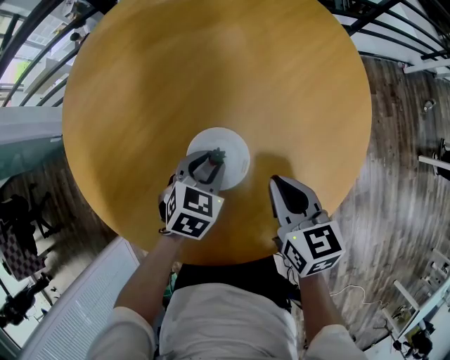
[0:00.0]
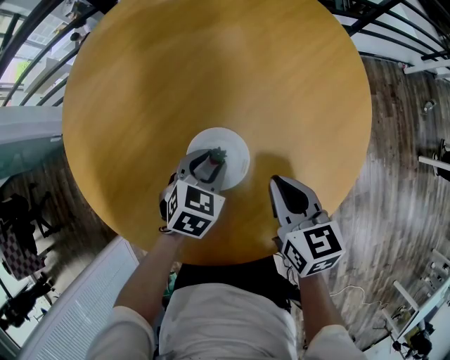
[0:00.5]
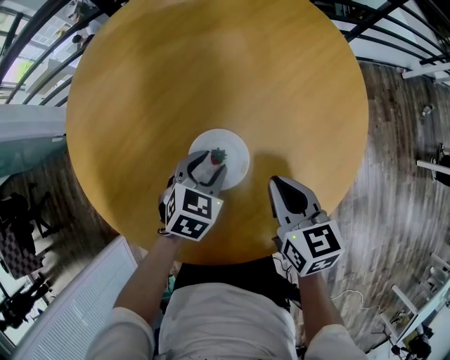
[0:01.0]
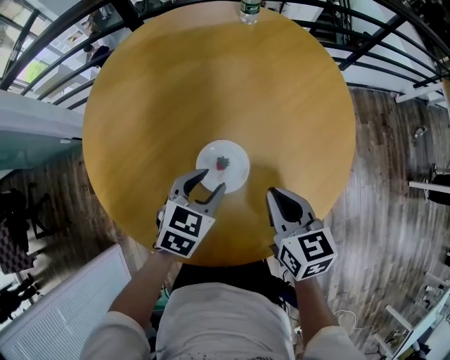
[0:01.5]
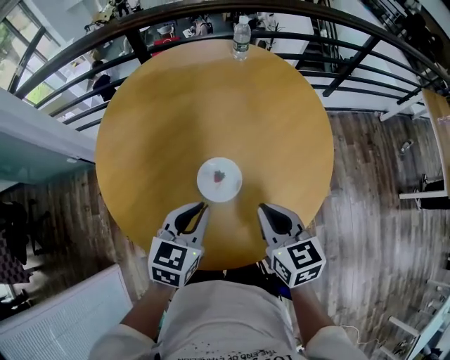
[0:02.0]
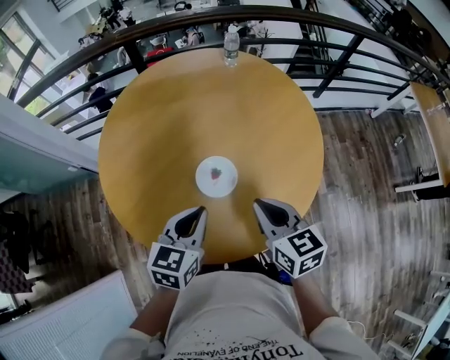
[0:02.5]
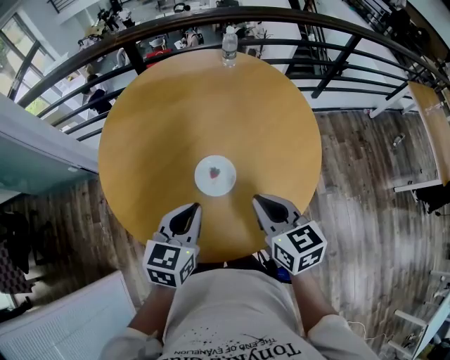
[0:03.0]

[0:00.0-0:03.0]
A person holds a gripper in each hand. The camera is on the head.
0:00.0 to 0:01.5: The right gripper travels upward by roughly 5 cm; the left gripper is displaced upward by roughly 10 cm.
0:01.5 to 0:03.0: The grippers both shift upward and backward by roughly 15 cm. The left gripper turns by about 20 degrees, and closes up.

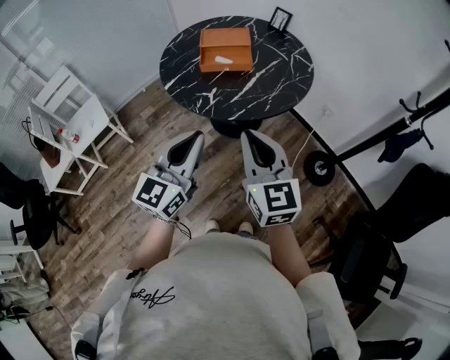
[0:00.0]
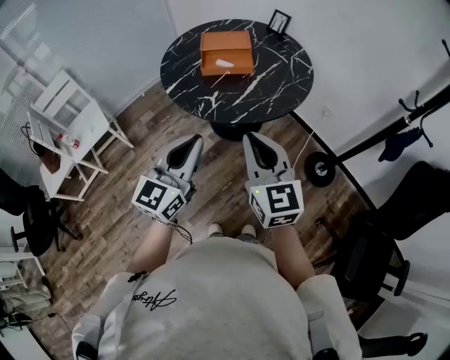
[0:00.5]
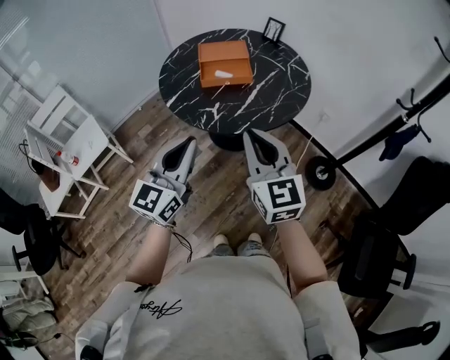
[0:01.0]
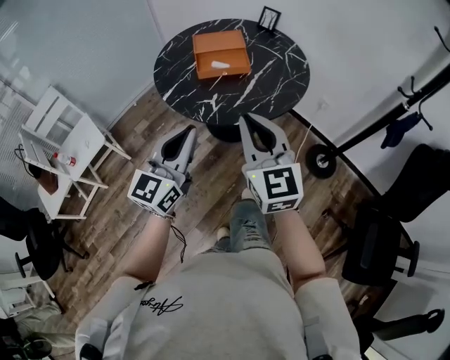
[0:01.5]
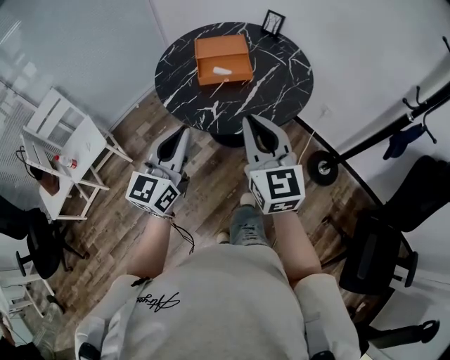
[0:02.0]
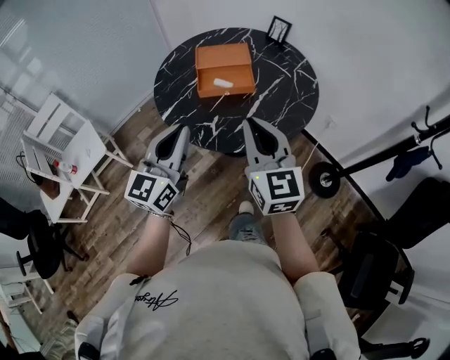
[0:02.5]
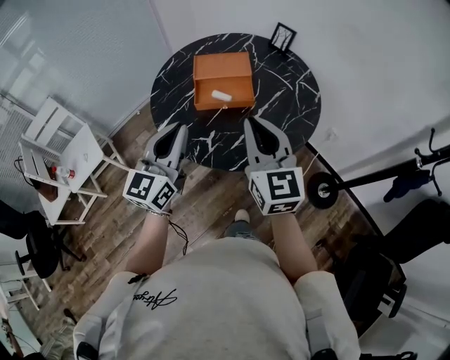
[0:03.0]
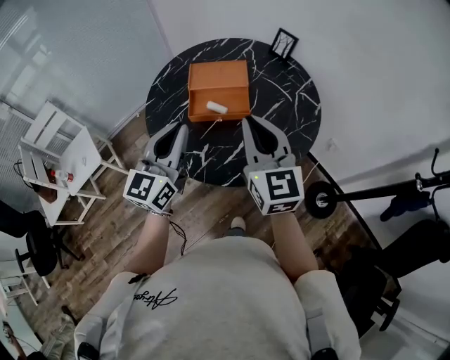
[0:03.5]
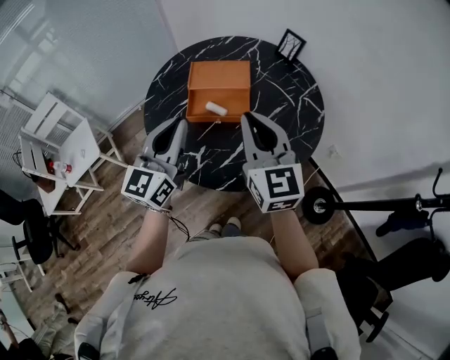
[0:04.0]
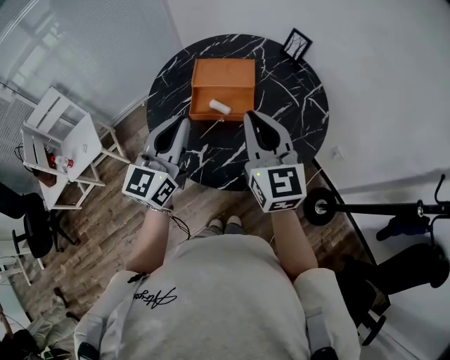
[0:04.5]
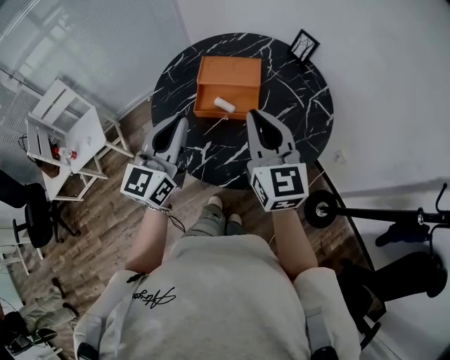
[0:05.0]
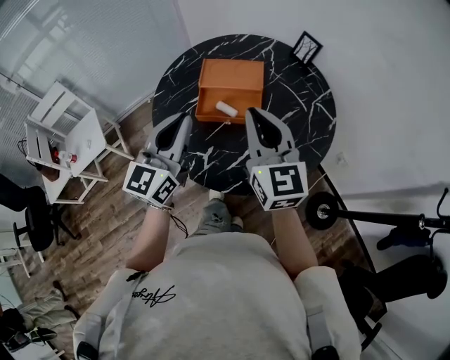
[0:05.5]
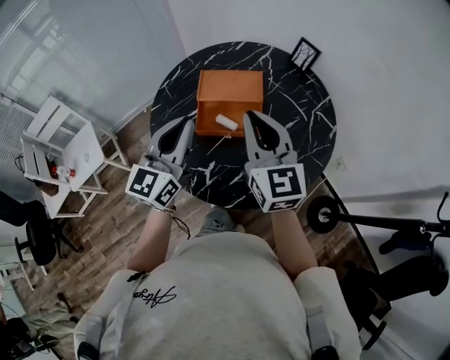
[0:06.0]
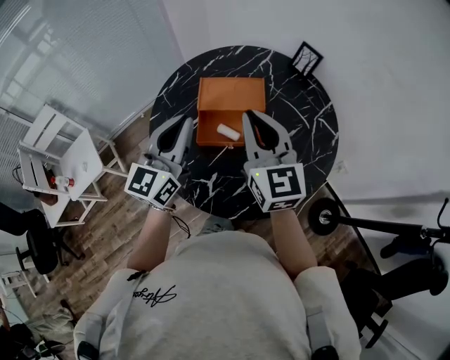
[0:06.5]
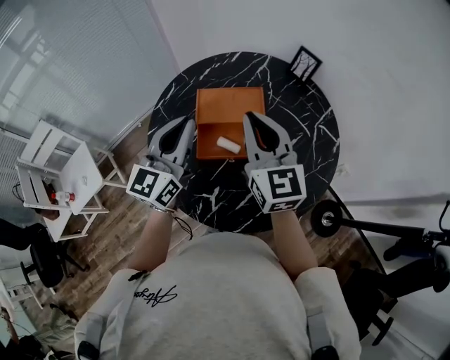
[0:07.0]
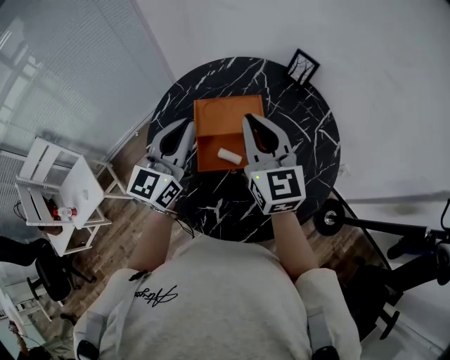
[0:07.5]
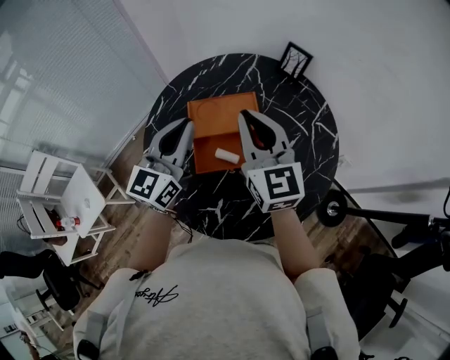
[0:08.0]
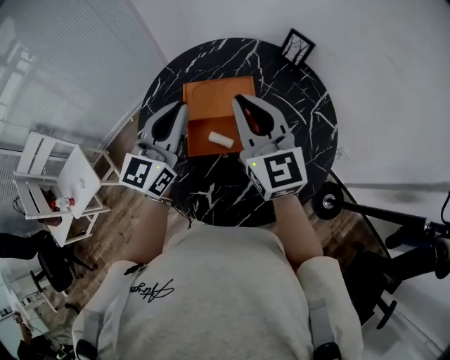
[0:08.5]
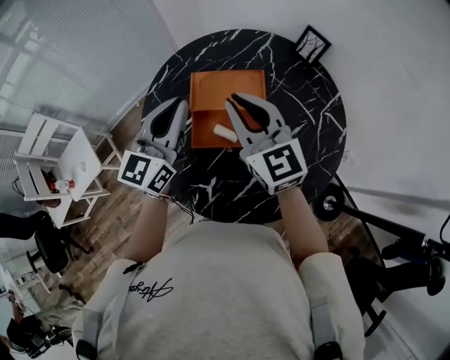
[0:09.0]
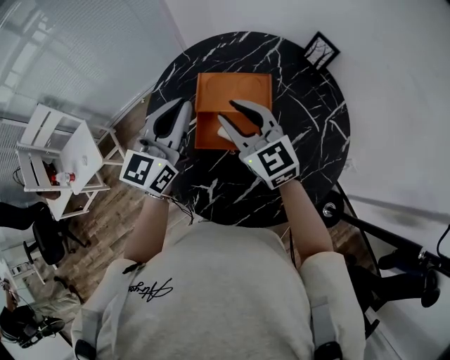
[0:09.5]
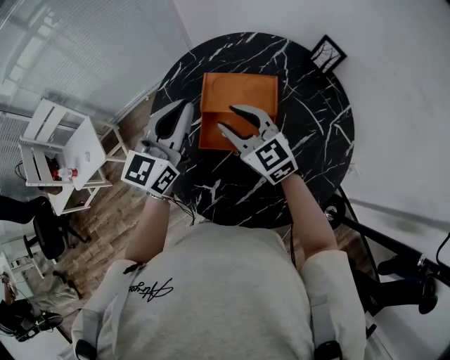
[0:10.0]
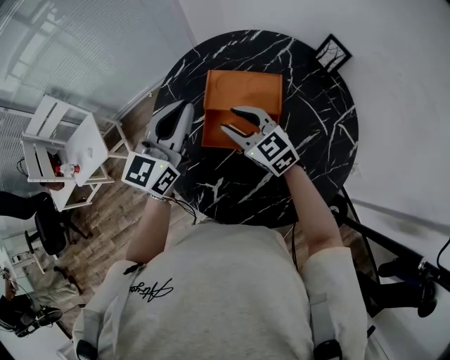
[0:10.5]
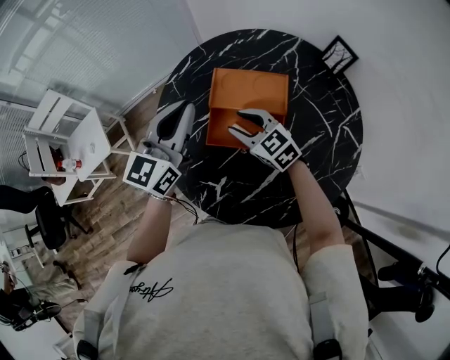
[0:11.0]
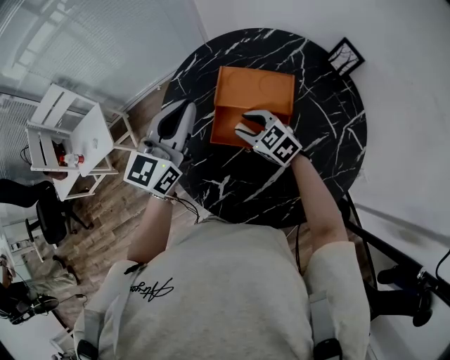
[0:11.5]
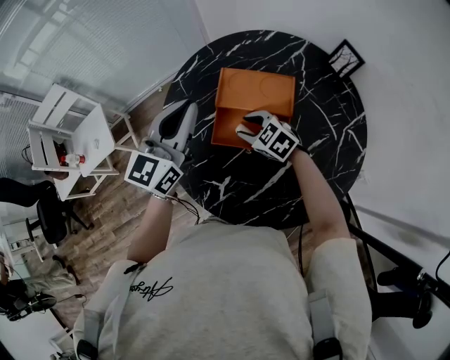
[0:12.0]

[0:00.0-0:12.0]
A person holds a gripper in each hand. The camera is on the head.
0:00.0 to 0:02.0: The left gripper moves to the left and forward, roughly 10 cm. Meanwhile the right gripper is displaced forward by approximately 5 cm.
0:02.0 to 0:04.0: Both grippers move forward, approximately 25 cm.
0:04.0 to 0:06.0: Both grippers travel together forward, some 5 cm.
0:06.0 to 0:08.0: Both grippers travel together forward, approximately 15 cm.
0:08.0 to 0:10.0: The right gripper moves downward and to the left, approximately 15 cm, swivels about 40 degrees, and opens.
0:10.0 to 0:12.0: The right gripper moves downward, about 15 cm, and tips its fingers downward by some 30 degrees.

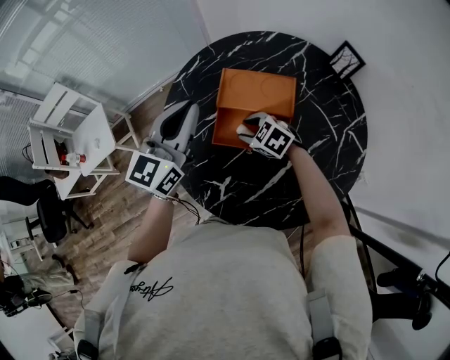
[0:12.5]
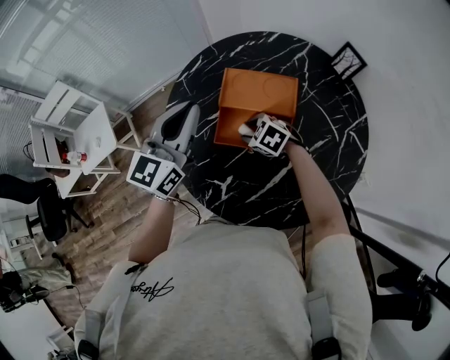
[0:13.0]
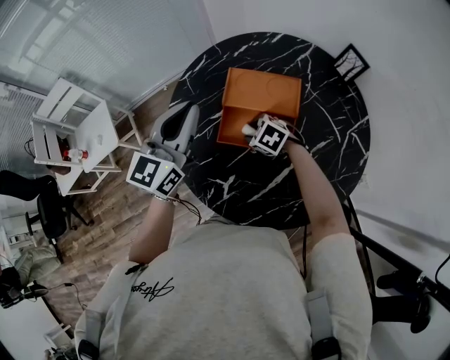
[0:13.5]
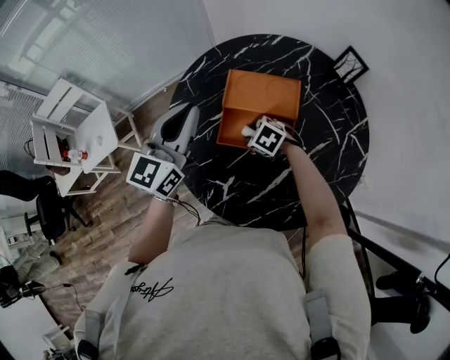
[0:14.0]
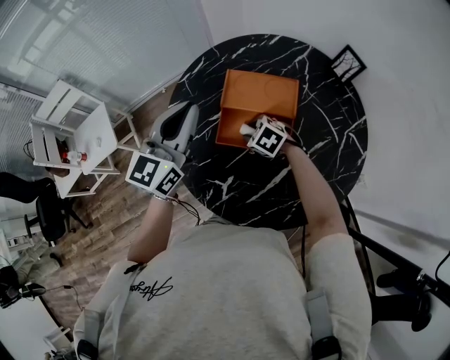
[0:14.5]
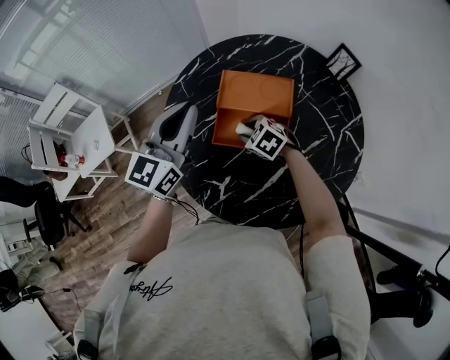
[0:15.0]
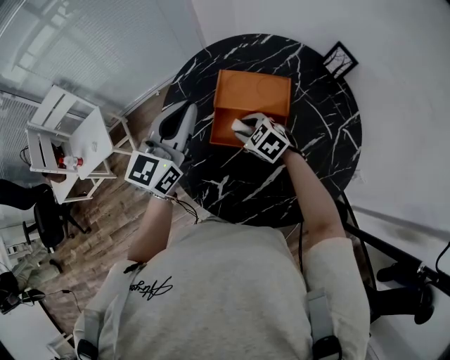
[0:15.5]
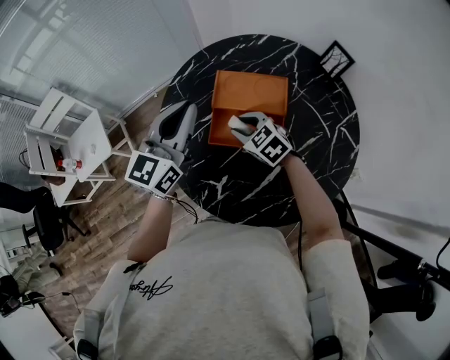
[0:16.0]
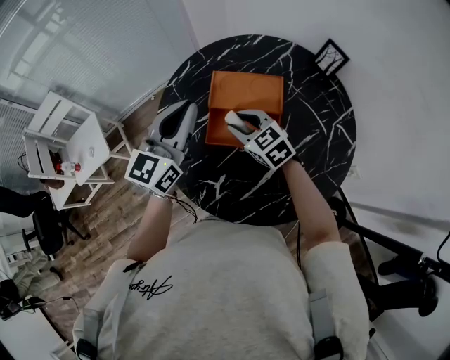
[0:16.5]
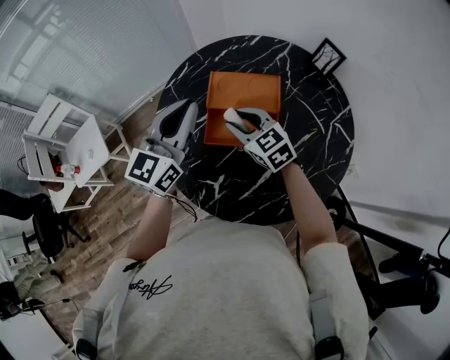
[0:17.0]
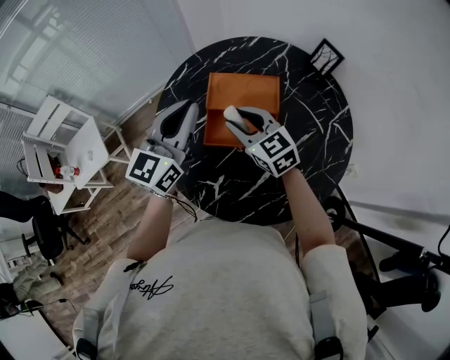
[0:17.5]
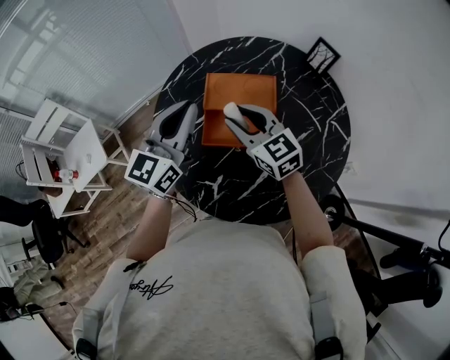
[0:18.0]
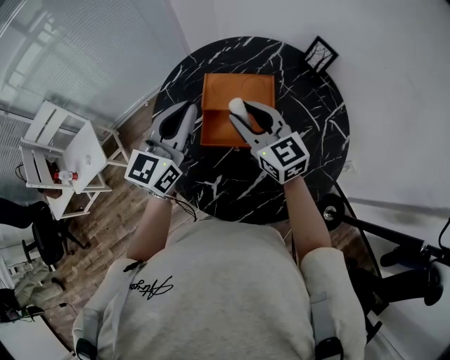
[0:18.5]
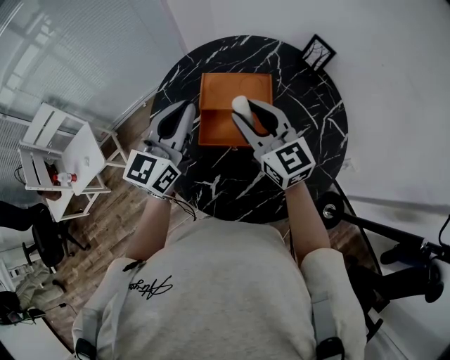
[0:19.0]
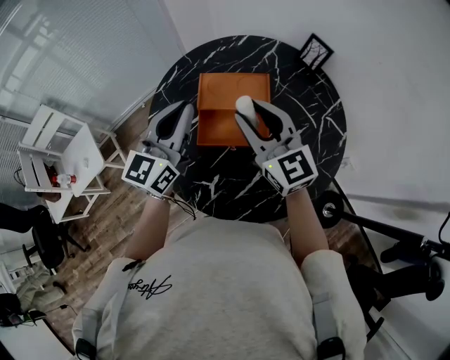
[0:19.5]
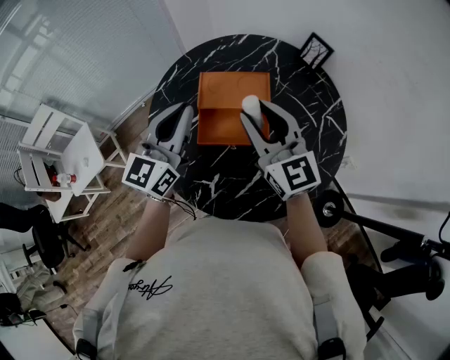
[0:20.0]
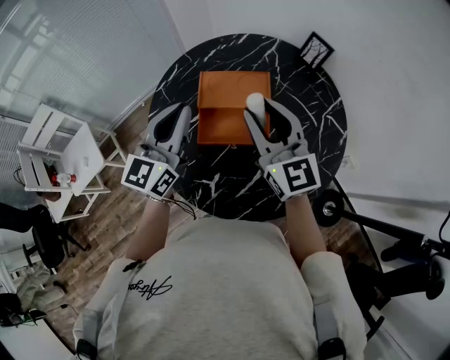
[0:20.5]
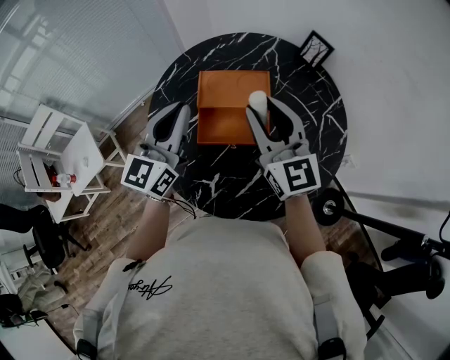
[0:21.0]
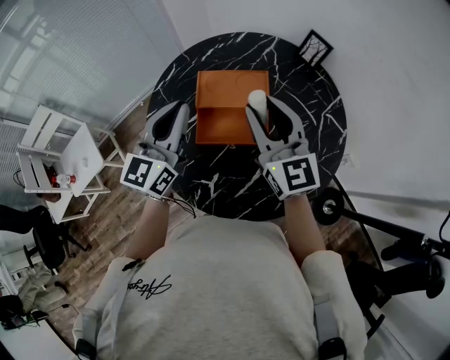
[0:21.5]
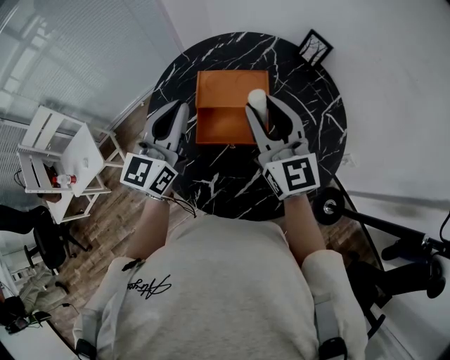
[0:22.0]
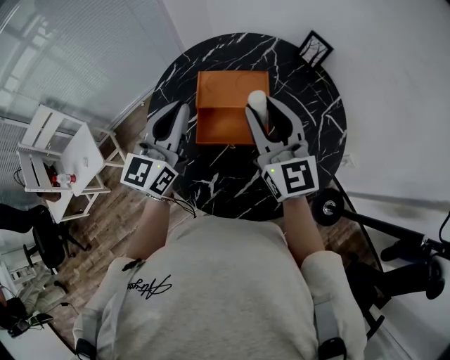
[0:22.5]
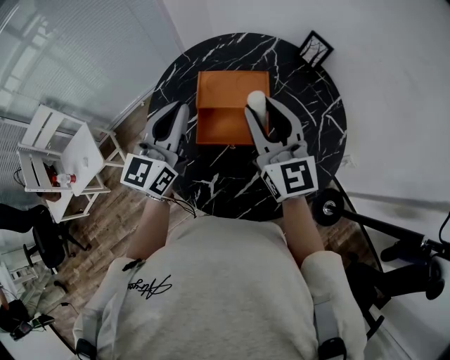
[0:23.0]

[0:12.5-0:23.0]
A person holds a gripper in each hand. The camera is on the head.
0:12.5 to 0:14.5: The grippers stay close to where they were, moving slightly.
0:14.5 to 0:16.5: The right gripper travels upward by some 10 cm, and turns by roughly 30 degrees.
0:16.5 to 0:19.0: The right gripper heads upward, covering approximately 15 cm, and swivels some 30 degrees.
0:19.0 to 0:21.0: The right gripper moves roughly 5 cm.
0:21.0 to 0:23.0: The two grippers keep their place.

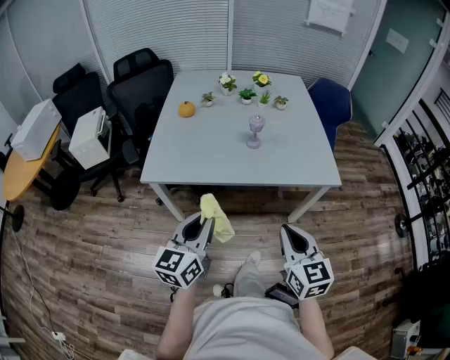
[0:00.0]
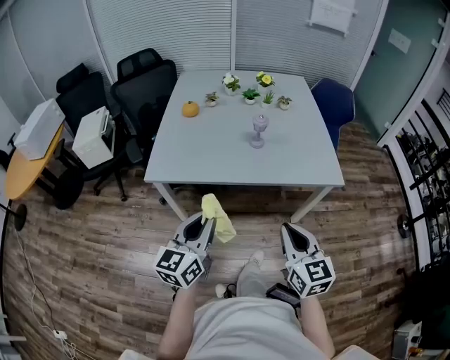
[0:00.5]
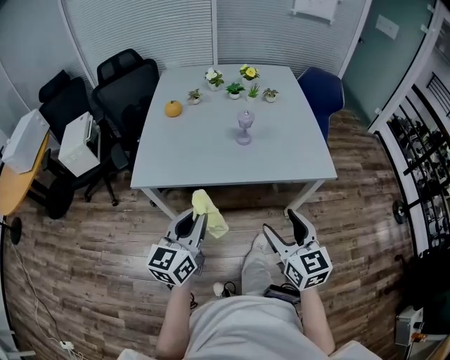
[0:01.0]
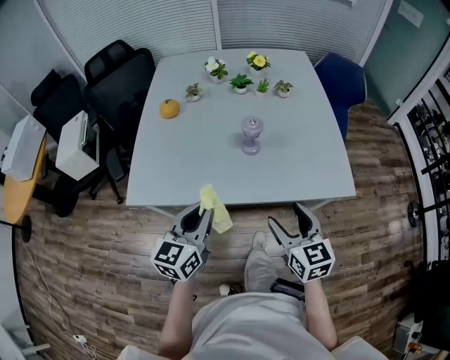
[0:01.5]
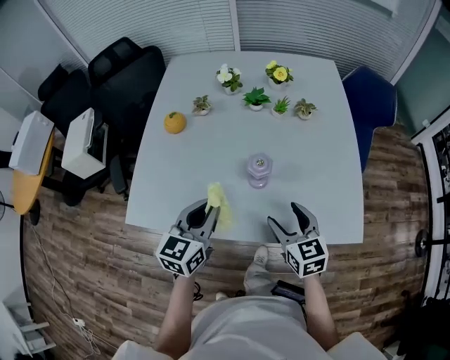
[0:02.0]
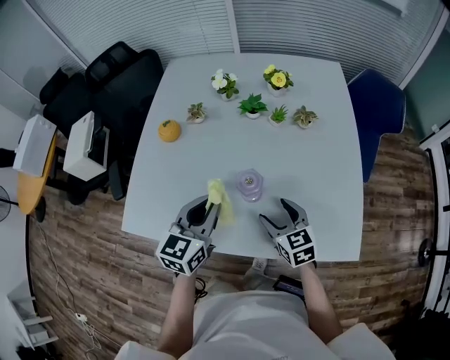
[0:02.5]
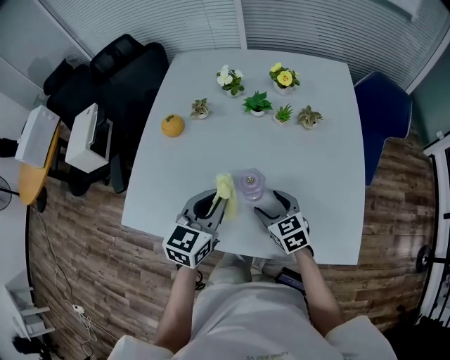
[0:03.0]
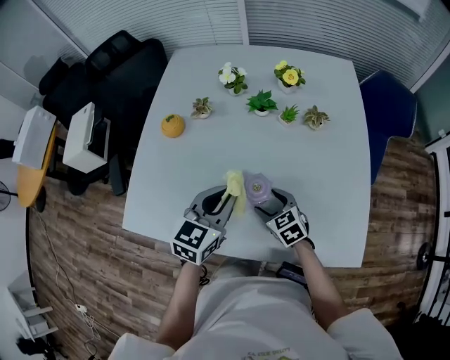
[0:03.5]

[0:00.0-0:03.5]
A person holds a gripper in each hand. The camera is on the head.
0:00.0 to 0:02.0: Both grippers move forward, about 40 cm. The right gripper opens.
0:02.0 to 0:03.5: The right gripper travels downward and forward by roughly 15 cm, and changes its angle by approximately 20 degrees, while the left gripper heads forward and to the right, covering approximately 15 cm.
